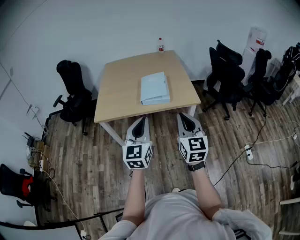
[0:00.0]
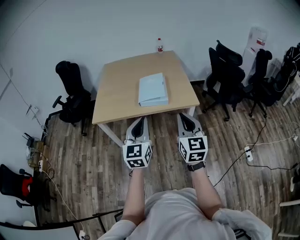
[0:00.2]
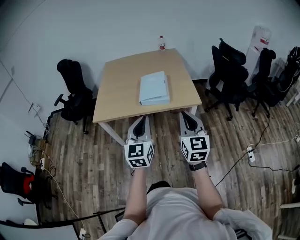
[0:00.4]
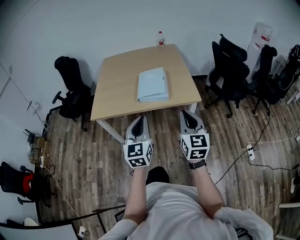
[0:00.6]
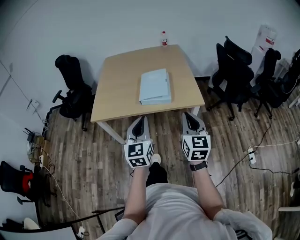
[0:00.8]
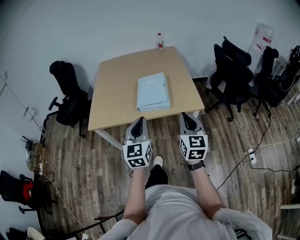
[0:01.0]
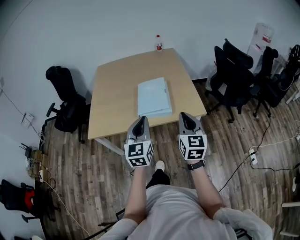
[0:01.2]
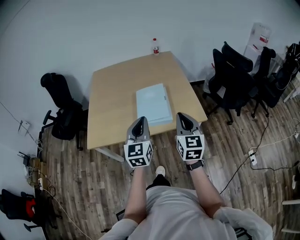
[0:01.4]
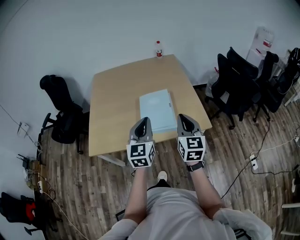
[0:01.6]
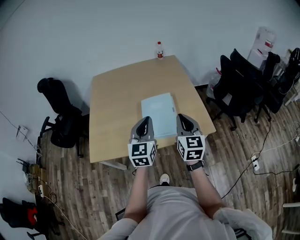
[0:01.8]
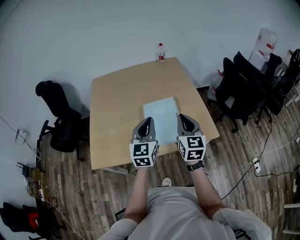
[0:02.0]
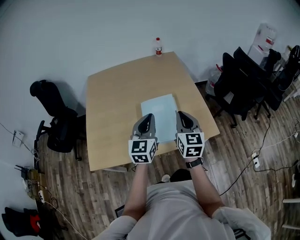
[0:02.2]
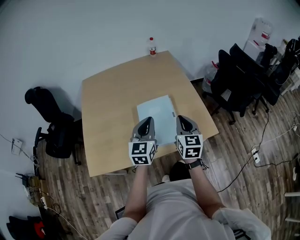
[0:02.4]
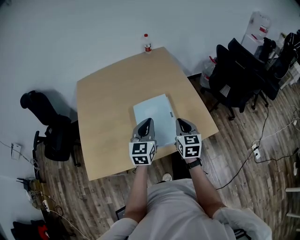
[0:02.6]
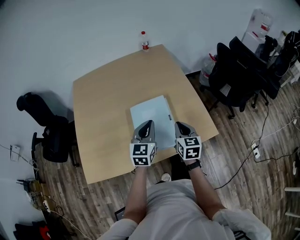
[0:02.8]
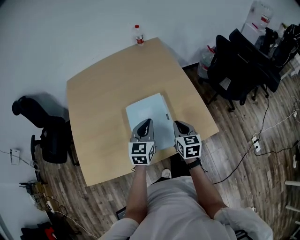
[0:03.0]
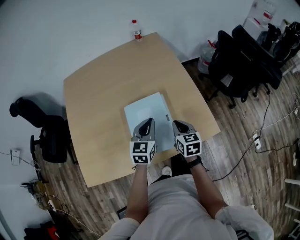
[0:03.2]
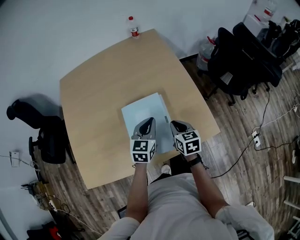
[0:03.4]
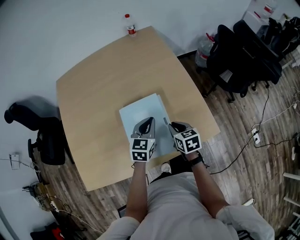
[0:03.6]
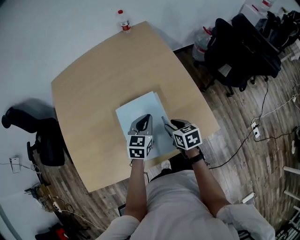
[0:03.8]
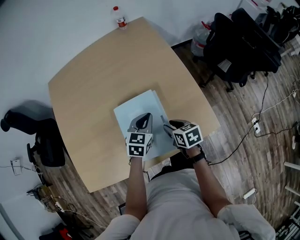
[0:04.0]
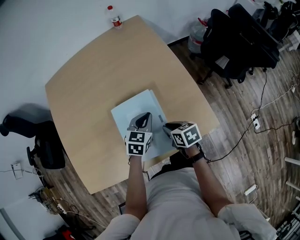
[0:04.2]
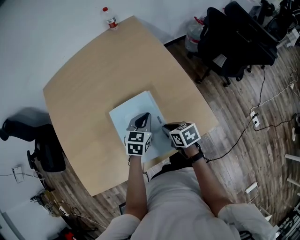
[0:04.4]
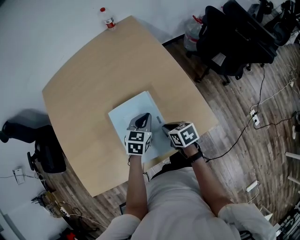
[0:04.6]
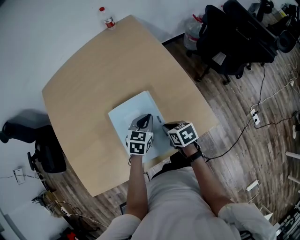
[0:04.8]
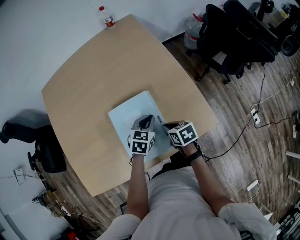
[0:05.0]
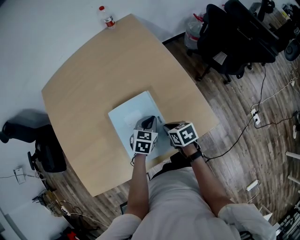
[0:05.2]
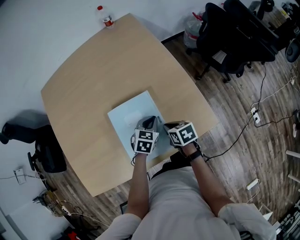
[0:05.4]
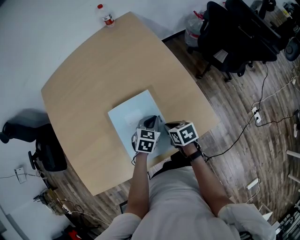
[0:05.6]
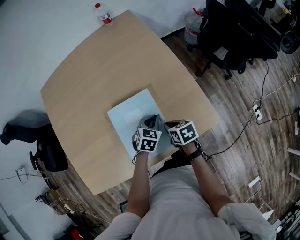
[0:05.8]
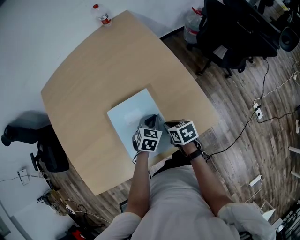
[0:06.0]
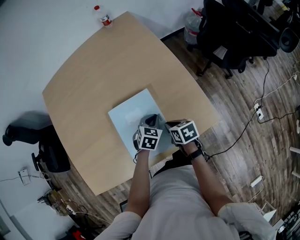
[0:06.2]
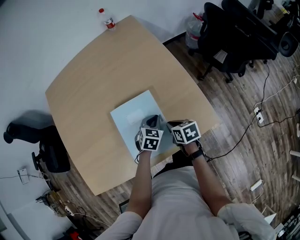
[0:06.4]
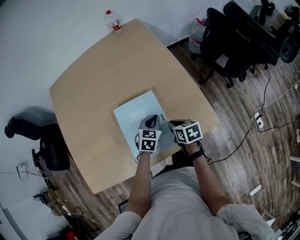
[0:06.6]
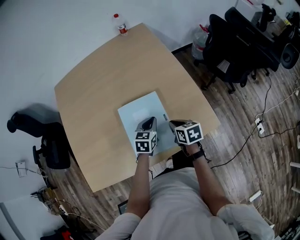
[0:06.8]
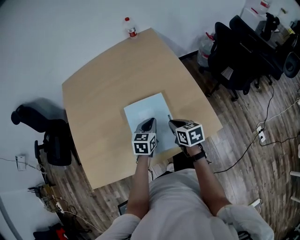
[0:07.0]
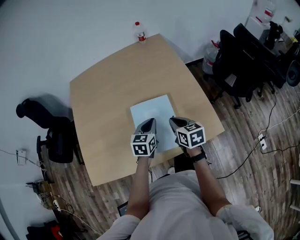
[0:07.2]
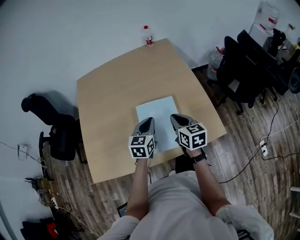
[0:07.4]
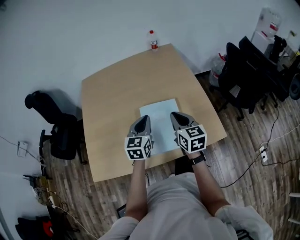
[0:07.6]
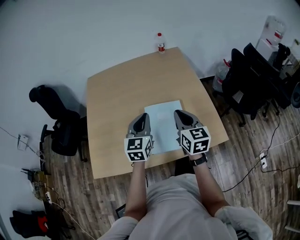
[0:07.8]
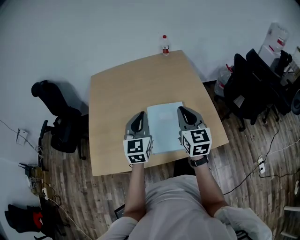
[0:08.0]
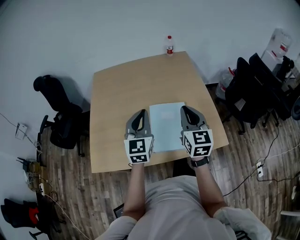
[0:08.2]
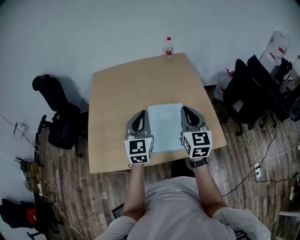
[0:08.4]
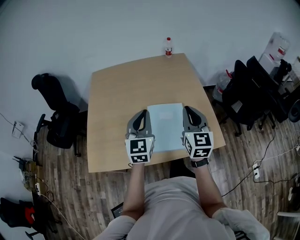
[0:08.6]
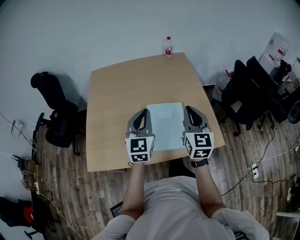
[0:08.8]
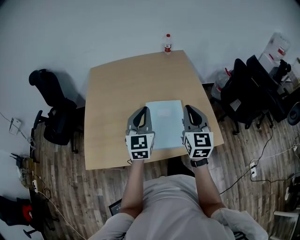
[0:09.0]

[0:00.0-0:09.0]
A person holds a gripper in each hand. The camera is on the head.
0:00.0 to 0:01.6: The grippers both shift forward by about 30 cm.
0:01.6 to 0:03.0: Both grippers travel together forward and downward, about 25 cm. The left gripper turns by about 20 degrees, while the right gripper swivels about 20 degrees.
0:03.0 to 0:04.4: The left gripper moves downward, forward and to the right, approximately 15 cm, and swivels approximately 30 degrees; the right gripper is displaced downward by some 10 cm, turns by roughly 40 degrees, and opens and closes again.
0:04.4 to 0:06.0: The left gripper travels downward by approximately 10 cm.
0:06.0 to 0:07.6: The left gripper heads upward and to the left, covering roughly 30 cm, and tips its fingers upward by approximately 30 degrees, while the right gripper moves upward, about 25 cm, and tilts its fingers approximately 30 degrees upward.
0:07.6 to 0:09.0: Both grippers travel together upward, some 10 cm. The right gripper turns by approximately 20 degrees.

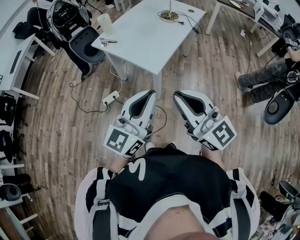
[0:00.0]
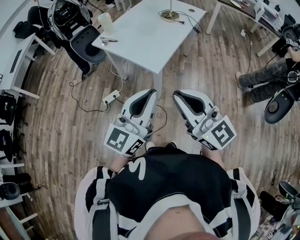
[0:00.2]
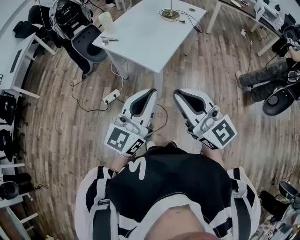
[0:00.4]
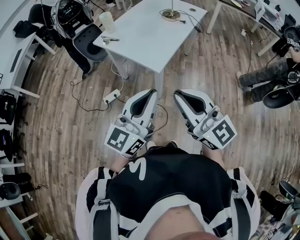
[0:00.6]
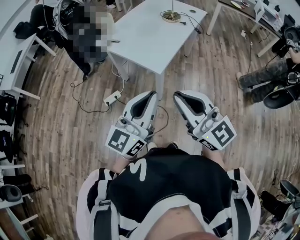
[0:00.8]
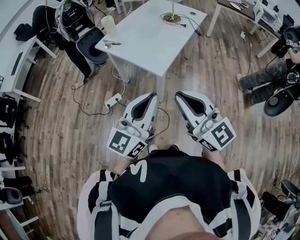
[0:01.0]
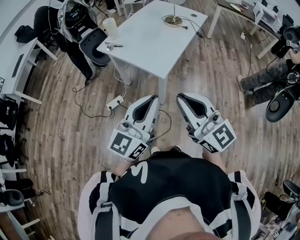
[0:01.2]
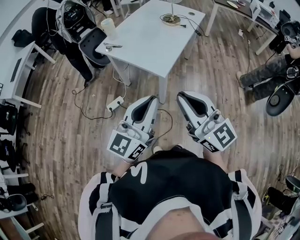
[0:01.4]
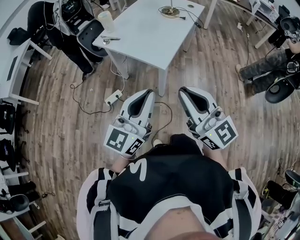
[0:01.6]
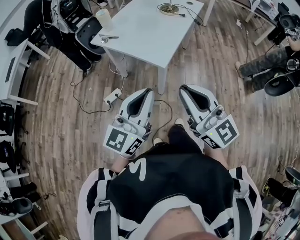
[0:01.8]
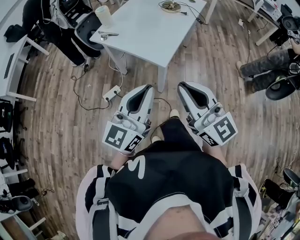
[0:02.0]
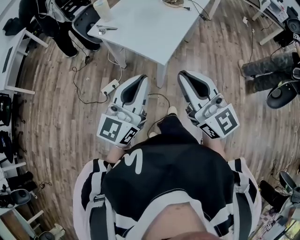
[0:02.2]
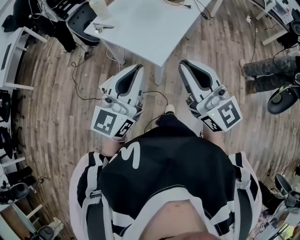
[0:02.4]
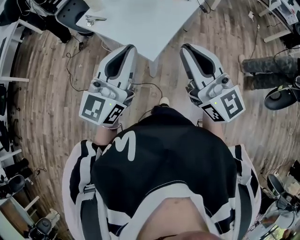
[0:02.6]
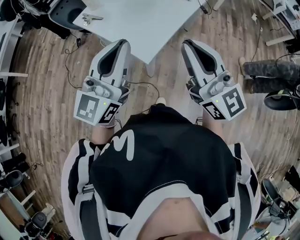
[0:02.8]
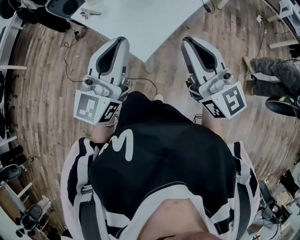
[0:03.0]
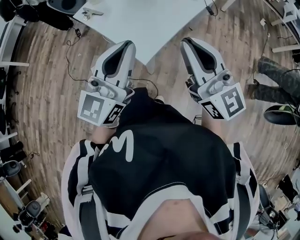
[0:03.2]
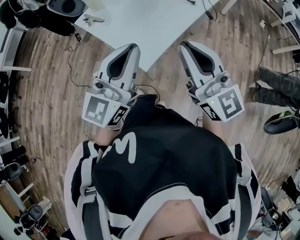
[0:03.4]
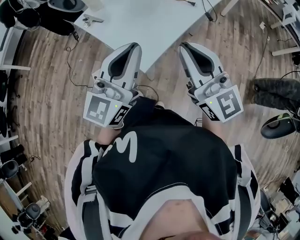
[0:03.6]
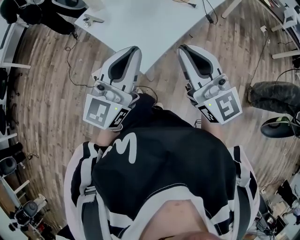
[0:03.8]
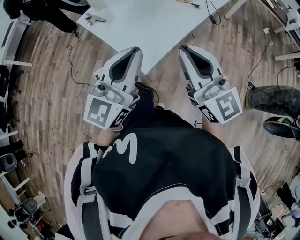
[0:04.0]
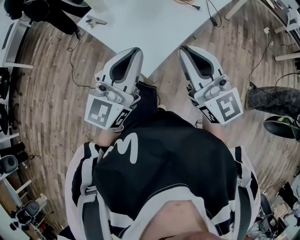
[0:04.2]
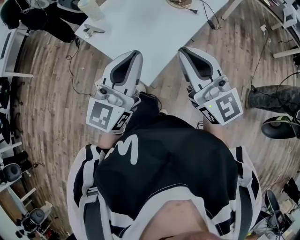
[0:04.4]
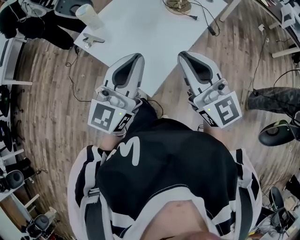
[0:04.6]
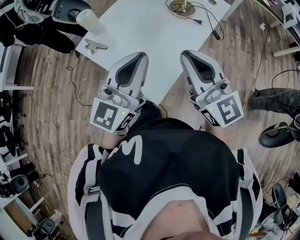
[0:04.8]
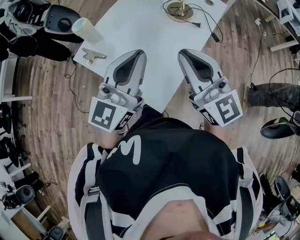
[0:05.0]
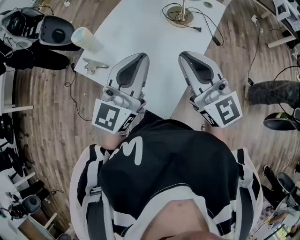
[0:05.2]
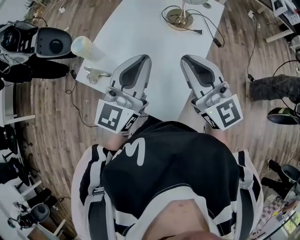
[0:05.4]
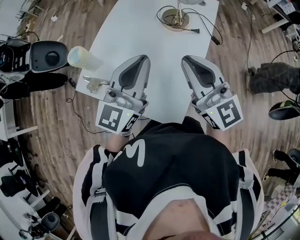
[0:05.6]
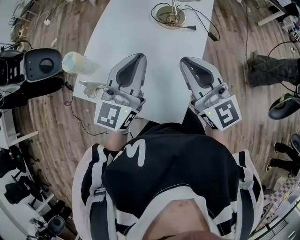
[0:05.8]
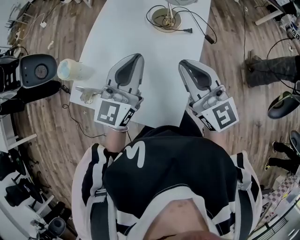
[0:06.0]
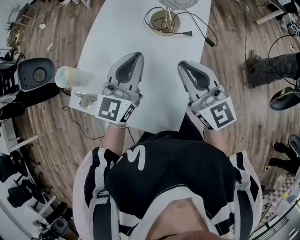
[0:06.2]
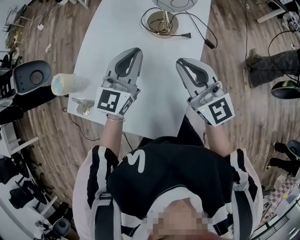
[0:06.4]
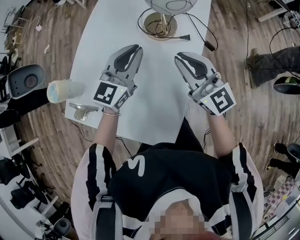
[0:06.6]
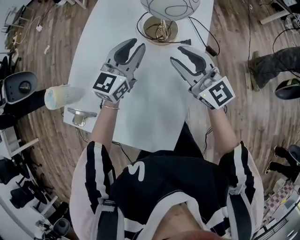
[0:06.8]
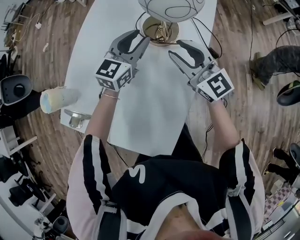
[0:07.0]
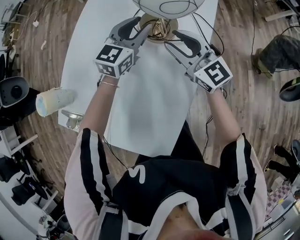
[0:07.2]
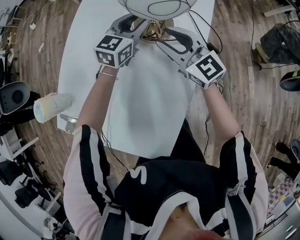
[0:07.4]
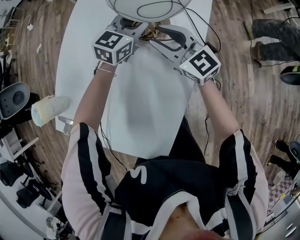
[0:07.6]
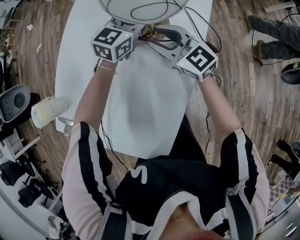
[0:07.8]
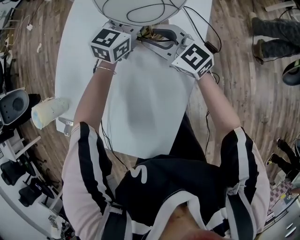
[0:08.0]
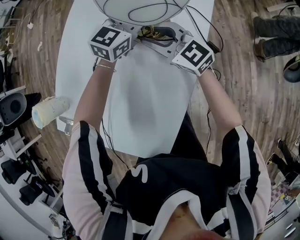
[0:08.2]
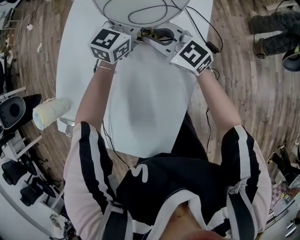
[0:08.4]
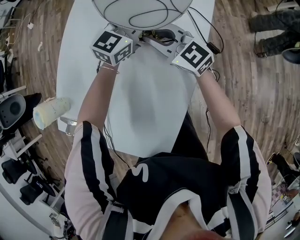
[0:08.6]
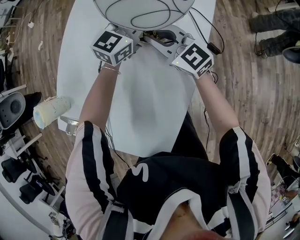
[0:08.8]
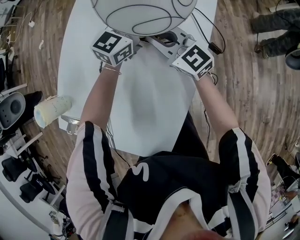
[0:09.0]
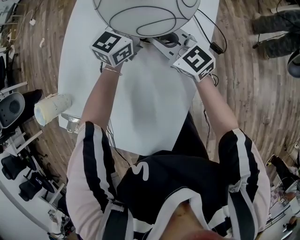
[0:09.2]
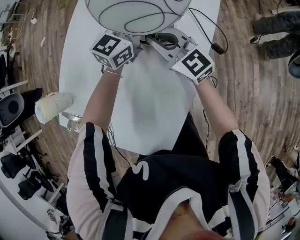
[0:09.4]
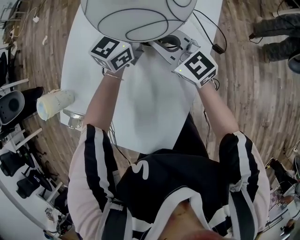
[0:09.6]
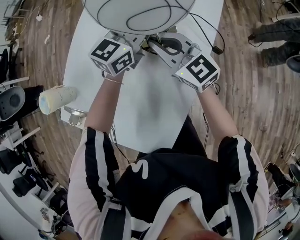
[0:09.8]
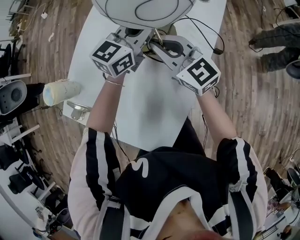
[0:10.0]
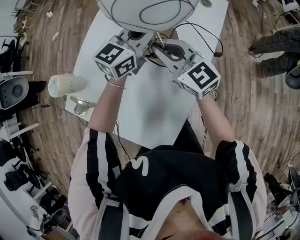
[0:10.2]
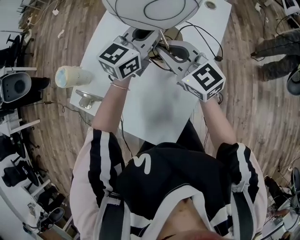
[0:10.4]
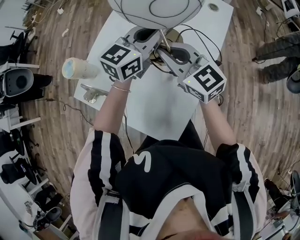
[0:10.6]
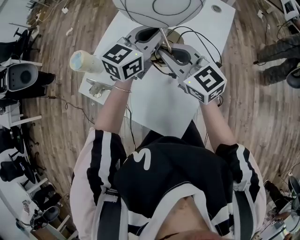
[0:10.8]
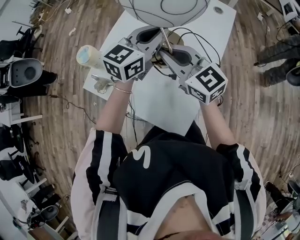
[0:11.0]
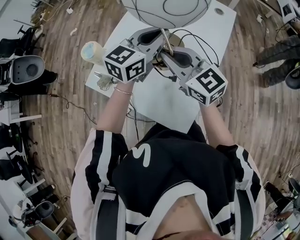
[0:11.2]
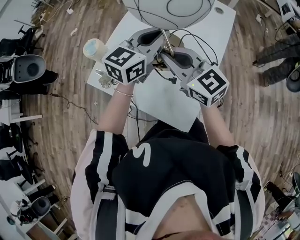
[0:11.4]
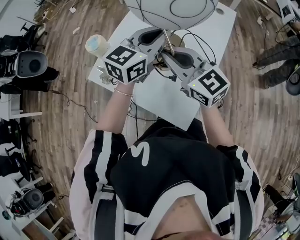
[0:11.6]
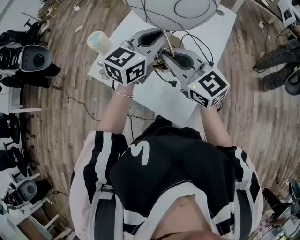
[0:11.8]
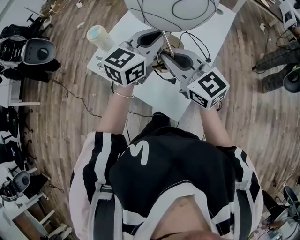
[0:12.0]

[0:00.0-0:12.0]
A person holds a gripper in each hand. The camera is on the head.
0:00.0 to 0:01.6: The left gripper heads to the left, covering about 5 cm.
0:01.6 to 0:03.0: The right gripper heads forward and to the right, covering roughly 25 cm. The left gripper is displaced forward by some 20 cm.
0:03.0 to 0:04.4: Both grippers travel together forward, some 5 cm.
0:04.4 to 0:06.0: Both grippers travel together forward, roughly 25 cm. The right gripper changes its angle by approximately 20 degrees.
0:06.0 to 0:07.6: The right gripper goes roughly 30 cm forward and downward, and opens up; the left gripper travels forward, downward and to the right by about 35 cm, changes its angle by about 30 degrees, and opens up.
0:07.6 to 0:09.0: The left gripper closes its fingers, while the right gripper closes.
0:09.0 to 0:10.4: The grippers both shift upward, backward and to the left by approximately 15 cm.
0:10.4 to 0:12.0: The right gripper is displaced backward by some 20 cm, while the left gripper shifts approximately 20 cm backward and upward.

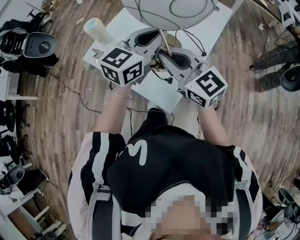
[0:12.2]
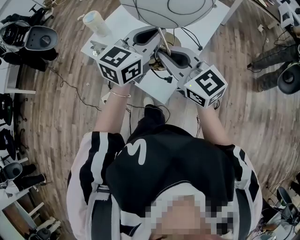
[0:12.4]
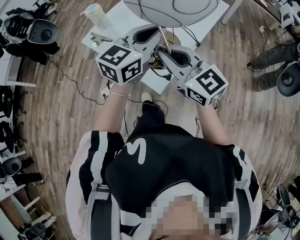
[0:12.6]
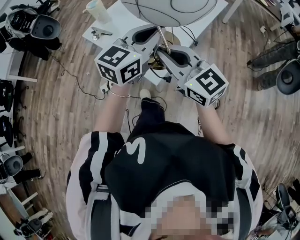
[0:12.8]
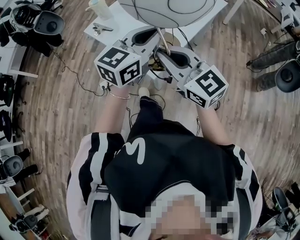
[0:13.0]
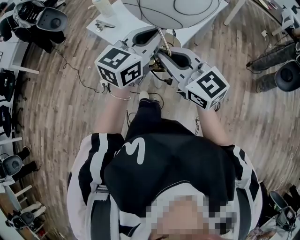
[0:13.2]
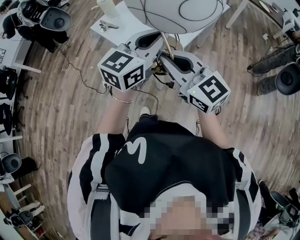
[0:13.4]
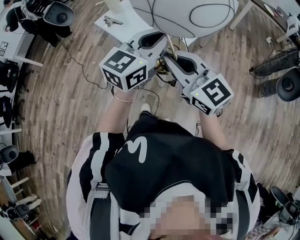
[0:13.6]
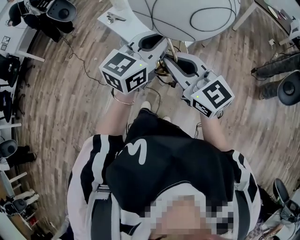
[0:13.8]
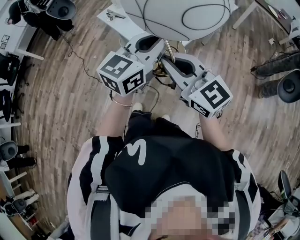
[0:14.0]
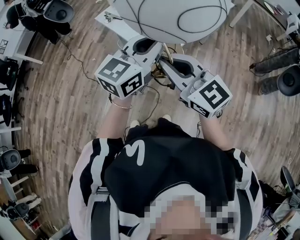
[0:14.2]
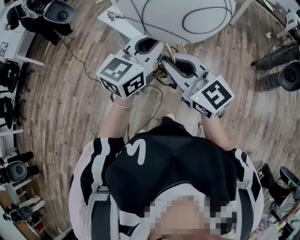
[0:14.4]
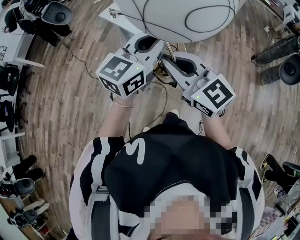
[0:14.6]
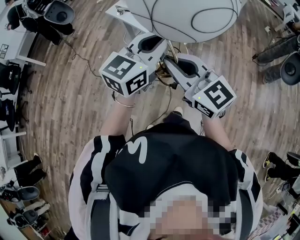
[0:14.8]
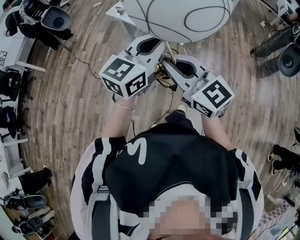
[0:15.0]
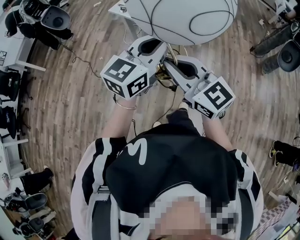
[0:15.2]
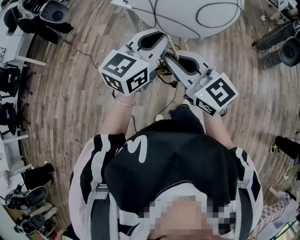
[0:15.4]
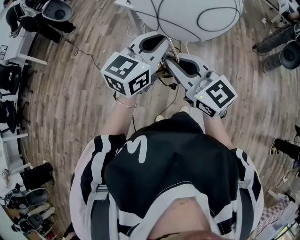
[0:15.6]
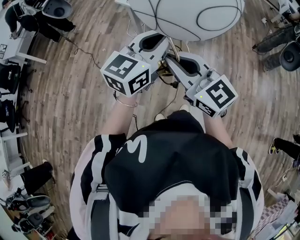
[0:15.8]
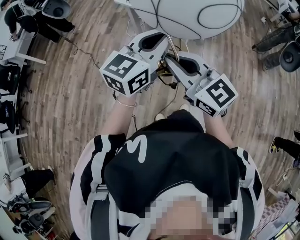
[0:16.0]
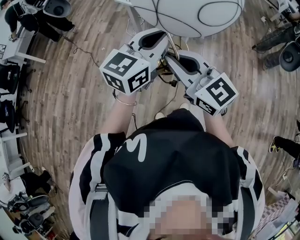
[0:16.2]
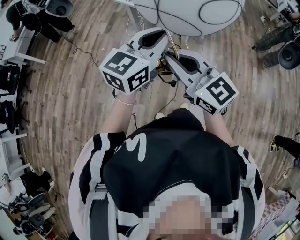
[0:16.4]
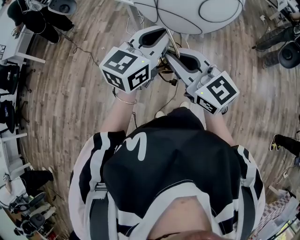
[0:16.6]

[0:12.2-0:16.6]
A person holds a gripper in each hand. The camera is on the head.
0:12.2 to 0:13.6: Both grippers move backward, approximately 25 cm.
0:13.6 to 0:15.2: Both grippers move backward and to the left, approximately 25 cm.
0:15.2 to 0:16.6: The right gripper ends up approximately 5 cm from where it was. The left gripper shifts by about 5 cm.
